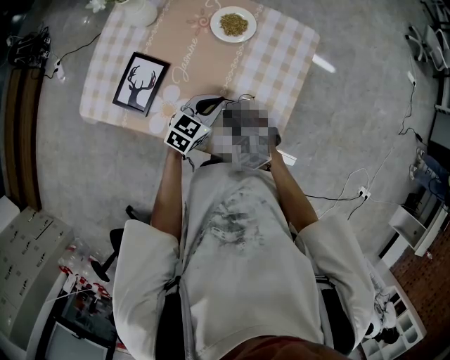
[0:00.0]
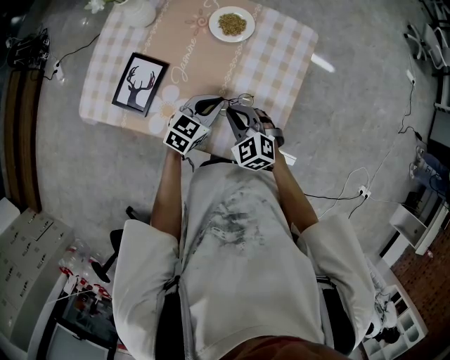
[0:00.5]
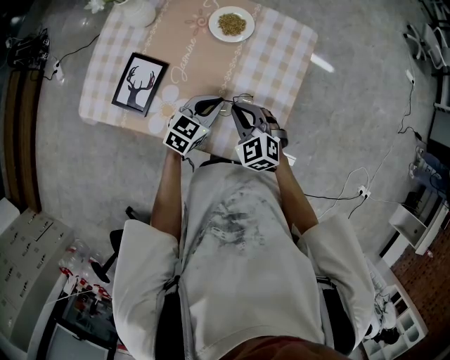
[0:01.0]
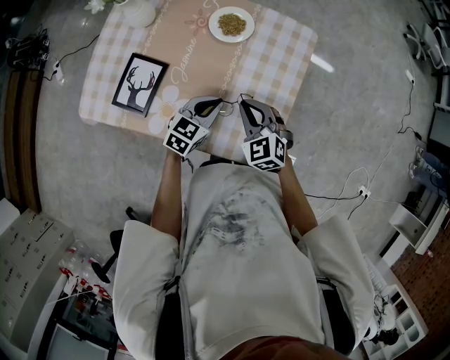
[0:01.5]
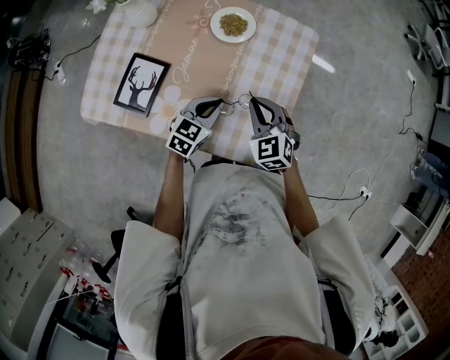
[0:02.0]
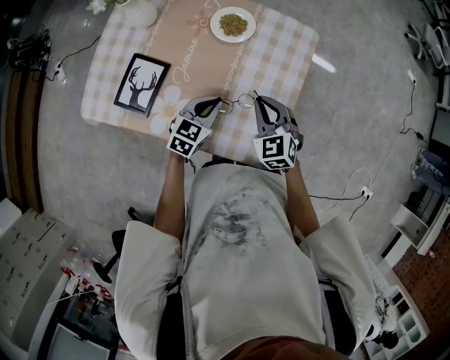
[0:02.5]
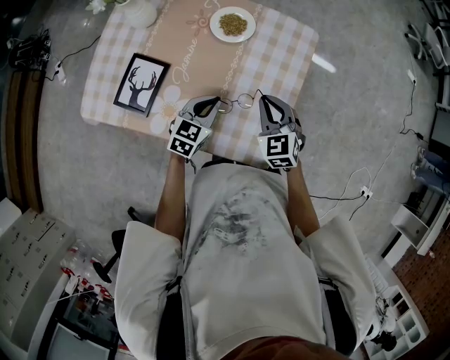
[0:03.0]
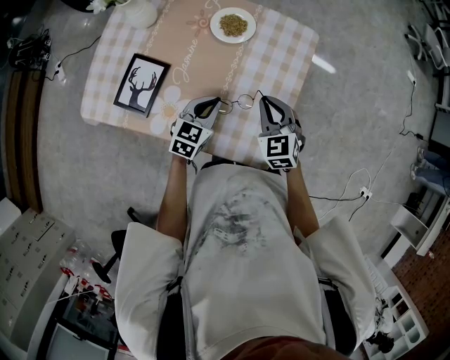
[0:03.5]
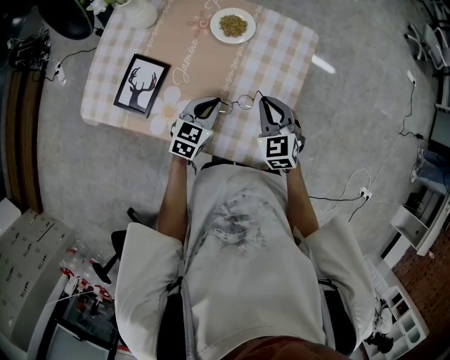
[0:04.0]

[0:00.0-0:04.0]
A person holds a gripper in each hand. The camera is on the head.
0:00.0 to 0:02.0: The right gripper heads to the right, upward and forward, covering approximately 10 cm, and turns by about 20 degrees.
0:02.0 to 0:04.0: The grippers move only a little.

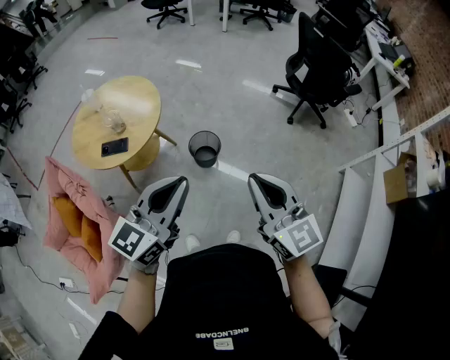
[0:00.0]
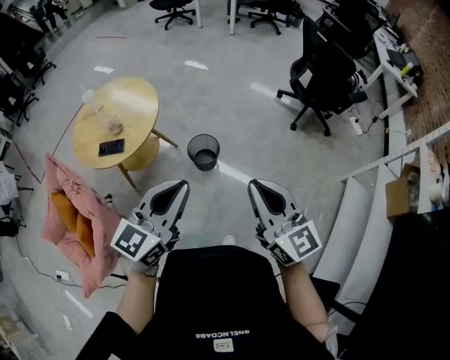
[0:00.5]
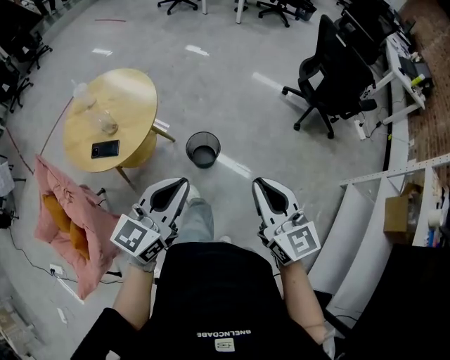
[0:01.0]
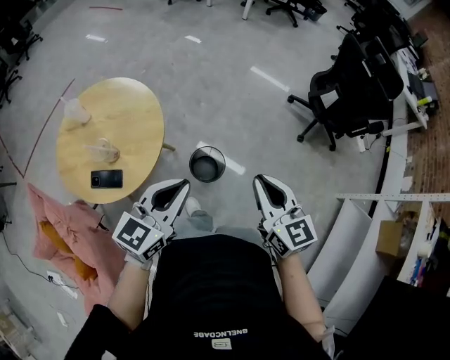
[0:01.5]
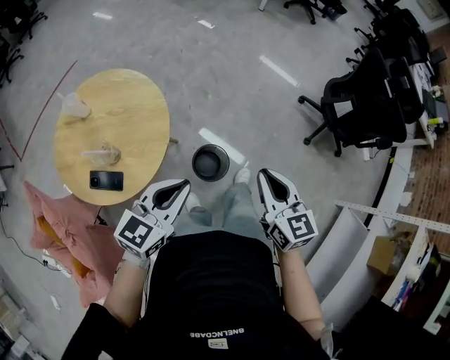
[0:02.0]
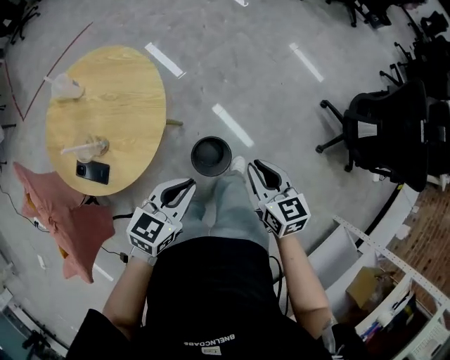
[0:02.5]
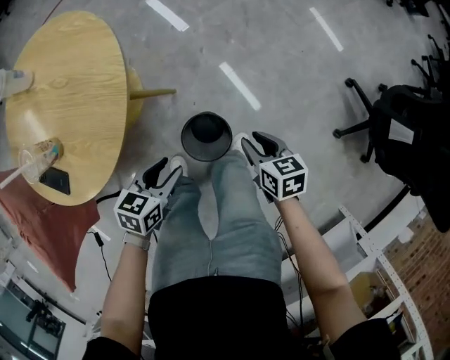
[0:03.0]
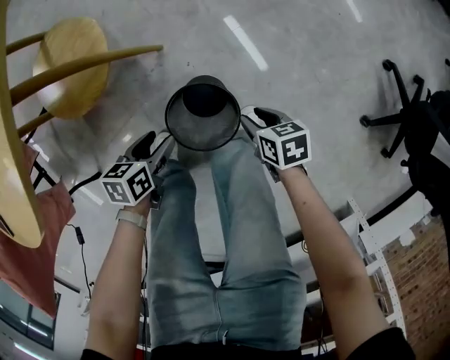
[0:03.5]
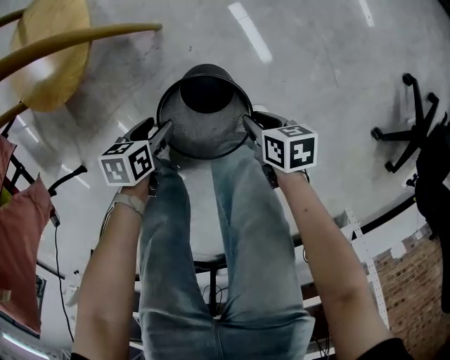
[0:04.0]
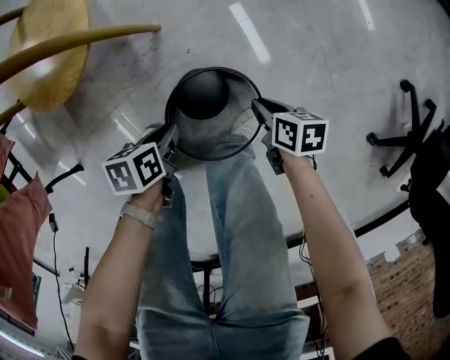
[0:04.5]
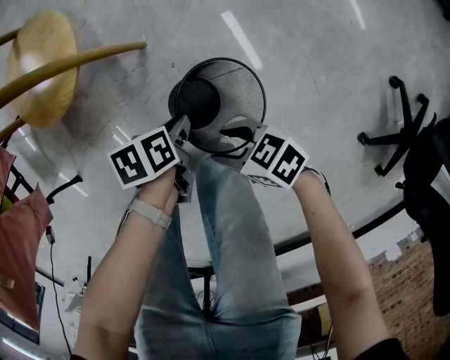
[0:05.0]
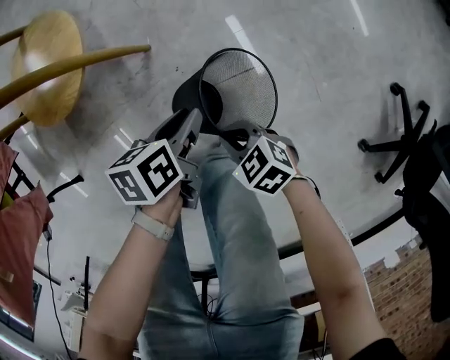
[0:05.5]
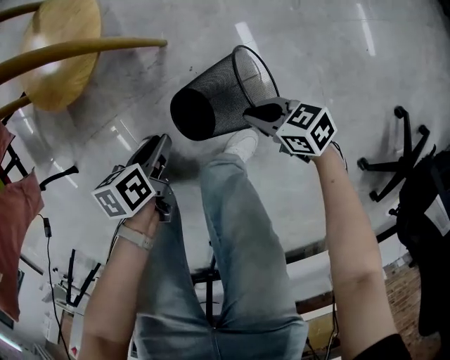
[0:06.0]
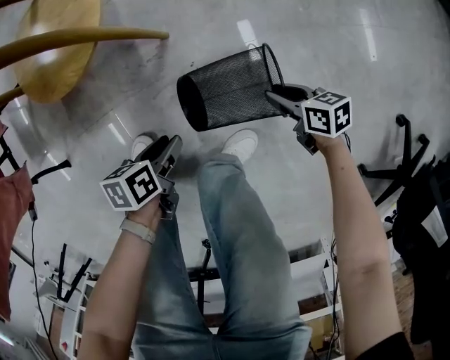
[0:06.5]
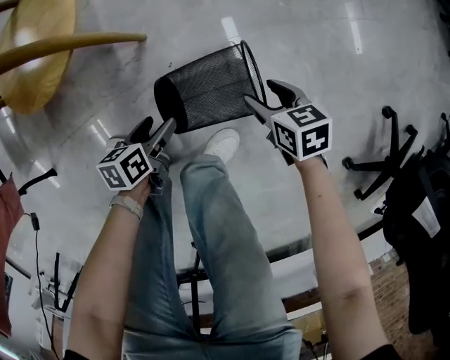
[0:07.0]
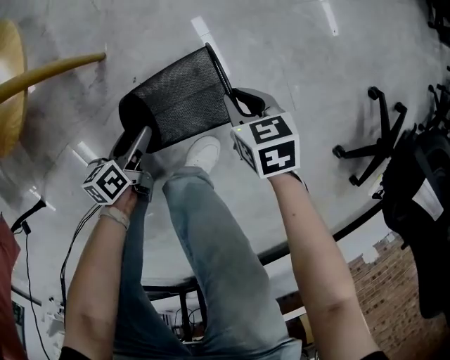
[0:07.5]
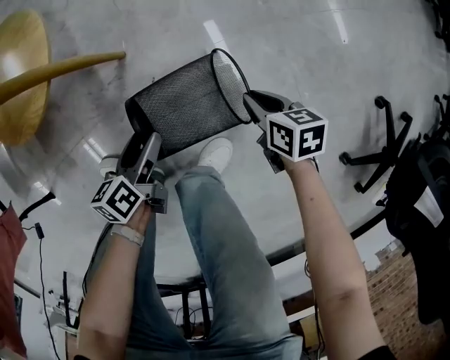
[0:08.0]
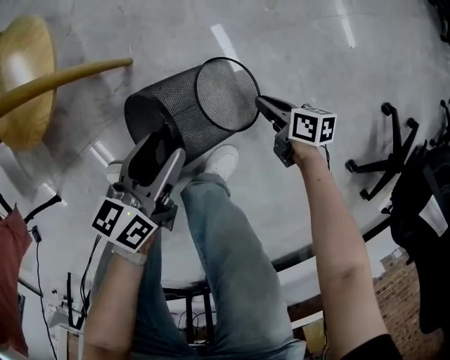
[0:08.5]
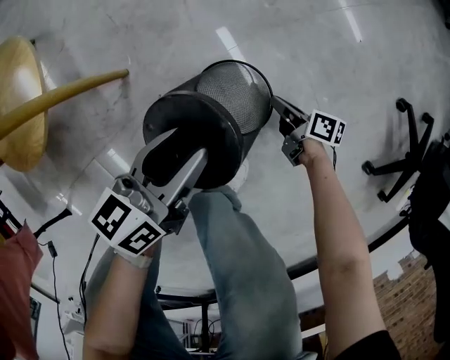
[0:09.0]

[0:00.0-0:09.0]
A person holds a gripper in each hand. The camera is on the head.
0:00.0 to 0:02.0: The grippers both shift forward and downward by about 35 cm. The right gripper rotates some 20 degrees.
0:02.0 to 0:04.5: The grippers both shift downward by about 70 cm. The left gripper twists roughly 70 degrees counterclockwise, seen from behind, and opens and closes again. The right gripper tilts its fingers roughly 40 degrees downward, and opens, then closes again.
0:04.5 to 0:07.0: The left gripper heads downward, covering some 5 cm, and opens up; the right gripper goes upward and returns, some 10 cm each way, changes its angle by roughly 30 degrees, and opens.
0:07.0 to 0:09.0: The left gripper shifts roughly 20 cm to the right, upward and forward, rotates approximately 30 degrees, and closes. The right gripper moves downward and to the right, about 15 cm, rolls clockwise, seen from behind, by about 50 degrees, and closes.

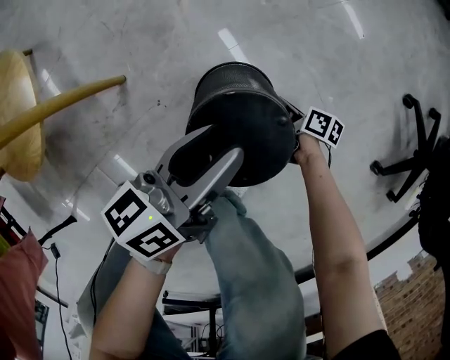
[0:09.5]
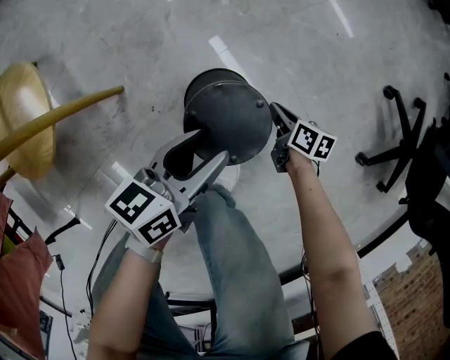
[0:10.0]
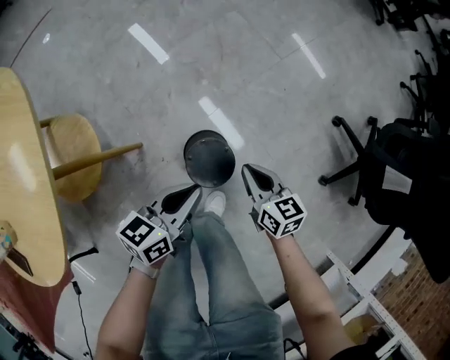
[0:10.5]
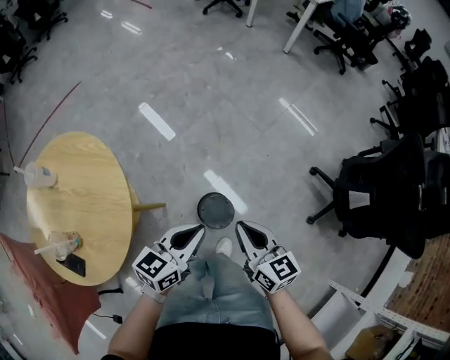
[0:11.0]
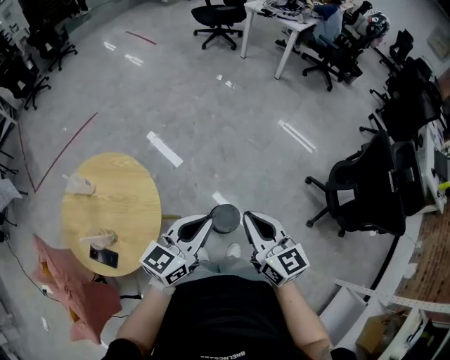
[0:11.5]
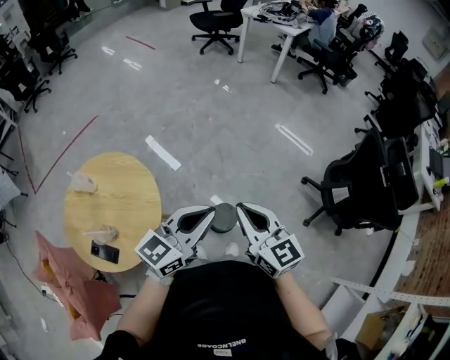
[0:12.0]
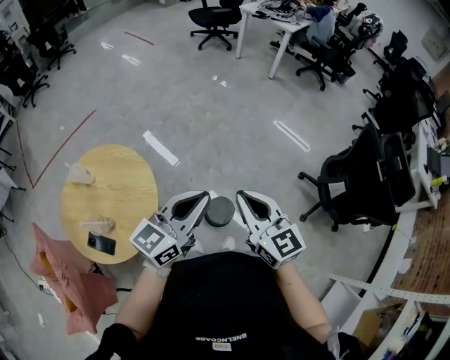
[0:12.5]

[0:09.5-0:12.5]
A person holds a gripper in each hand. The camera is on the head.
0:09.5 to 0:11.0: The right gripper heads upward, covering about 70 cm, and swivels roughly 60 degrees; the left gripper shifts about 40 cm upward, changes its angle by some 40 degrees, and closes.
0:11.0 to 0:12.5: Both grippers travel together upward, some 25 cm. The right gripper changes its angle by some 20 degrees; the left gripper swivels roughly 20 degrees.

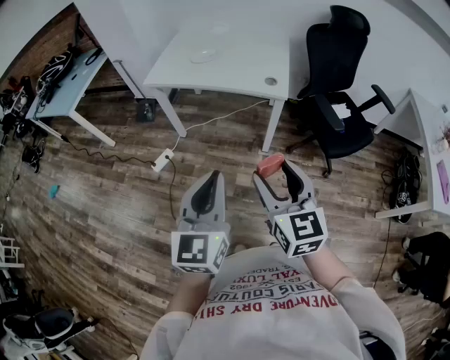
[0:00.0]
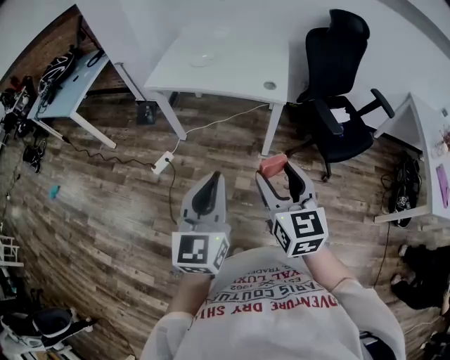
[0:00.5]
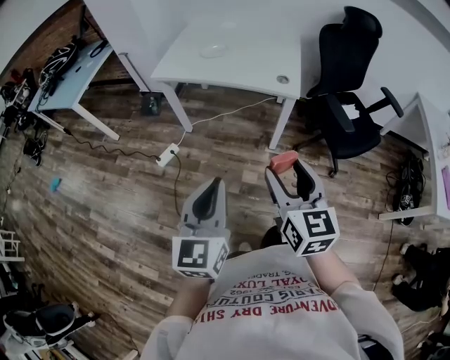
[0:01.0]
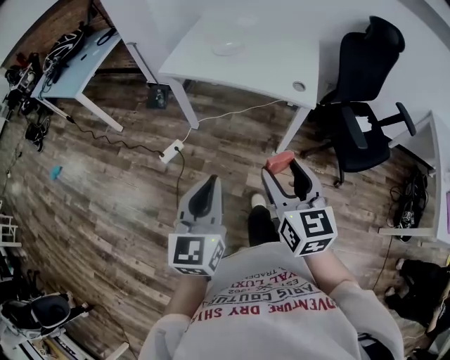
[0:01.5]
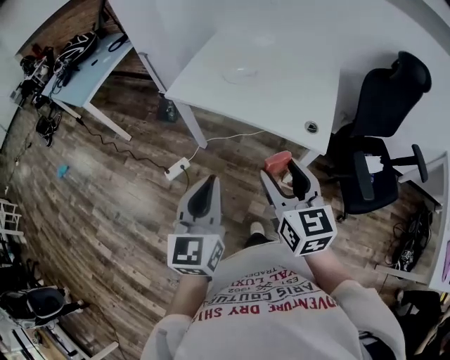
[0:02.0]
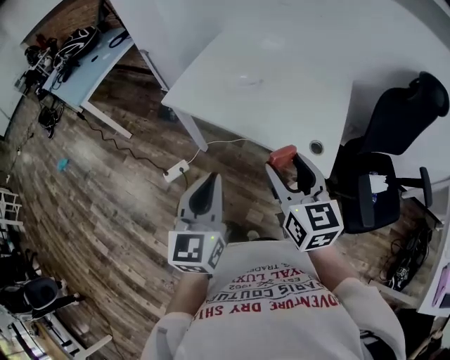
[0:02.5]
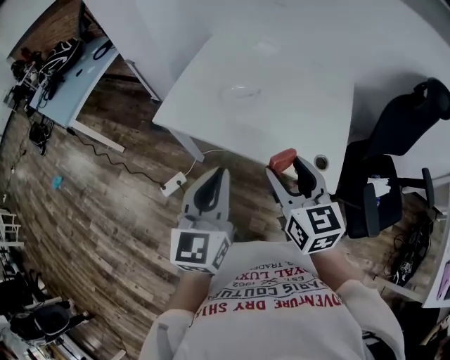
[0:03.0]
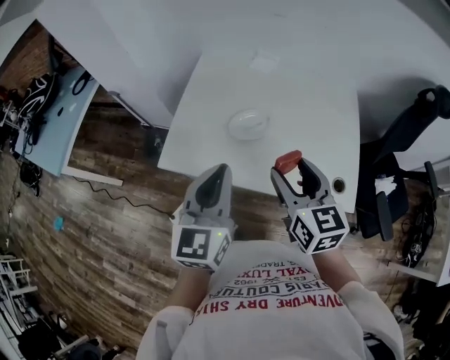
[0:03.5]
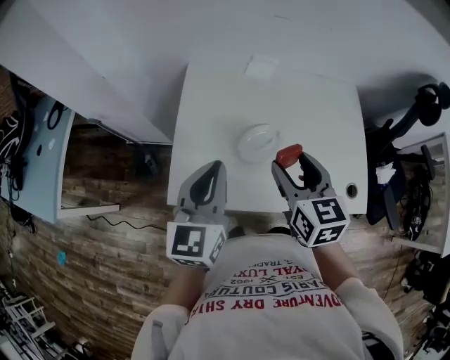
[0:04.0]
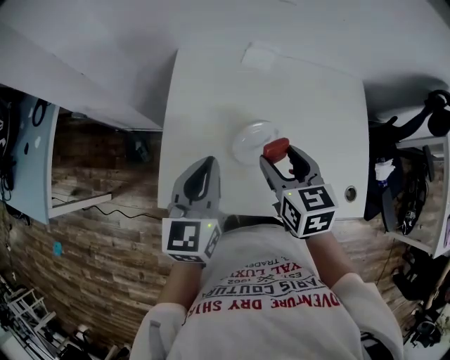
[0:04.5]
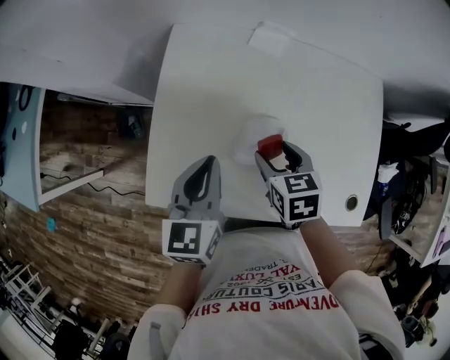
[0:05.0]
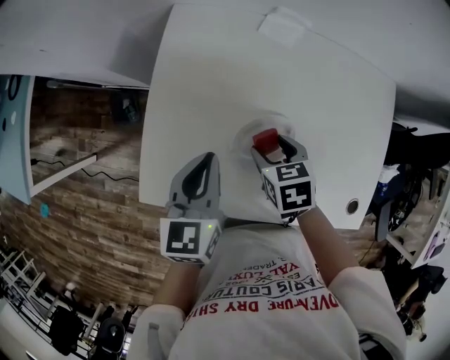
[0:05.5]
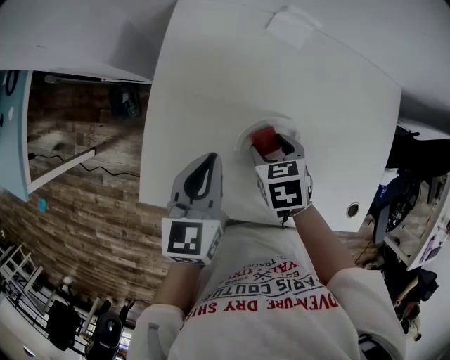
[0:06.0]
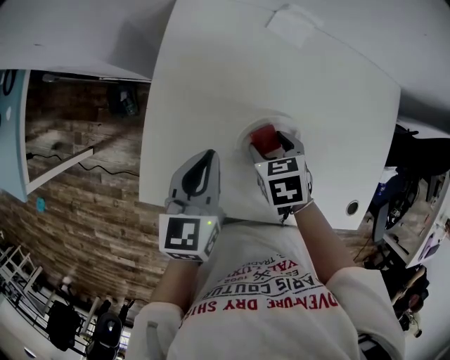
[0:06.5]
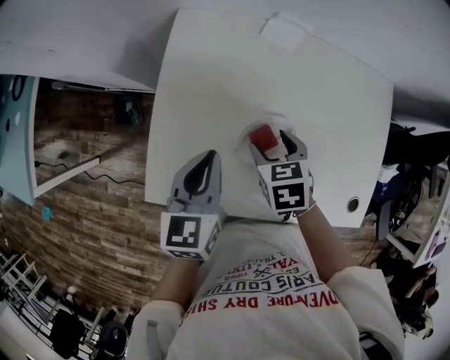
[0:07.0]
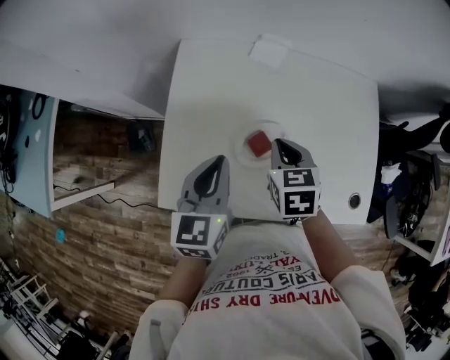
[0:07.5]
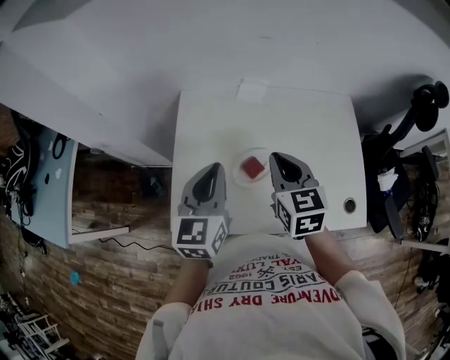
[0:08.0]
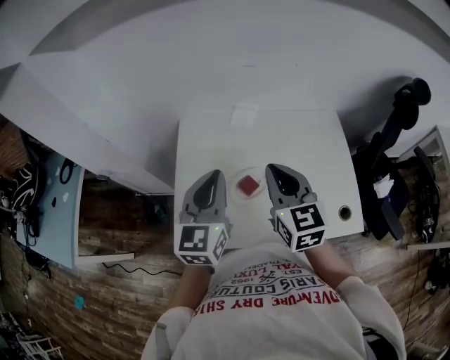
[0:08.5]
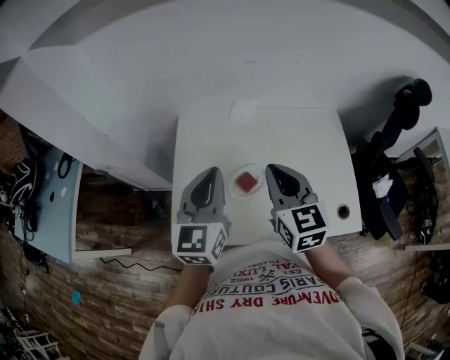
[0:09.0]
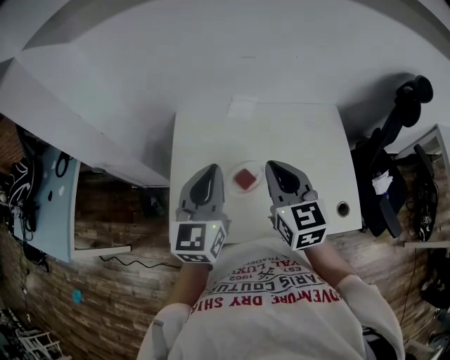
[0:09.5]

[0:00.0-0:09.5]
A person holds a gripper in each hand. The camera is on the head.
0:00.0 to 0:02.0: Both grippers move forward, about 25 cm.
0:02.0 to 0:04.0: Both grippers are carried forward, about 50 cm. The left gripper rotates about 20 degrees. Meanwhile the right gripper rotates about 20 degrees.
0:04.0 to 0:05.5: Both grippers travel together downward and forward, approximately 20 cm. The left gripper swivels about 20 degrees. The right gripper angles its fingers downward, by roughly 40 degrees.
0:05.5 to 0:07.5: The left gripper travels upward by some 5 cm, while the right gripper heads upward, covering some 10 cm, and closes.
0:07.5 to 0:09.5: Both grippers move upward, some 15 cm. The left gripper swivels roughly 20 degrees. Meanwhile the right gripper points its fingers approximately 30 degrees further upward.
